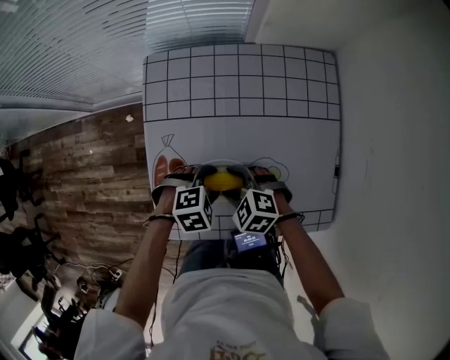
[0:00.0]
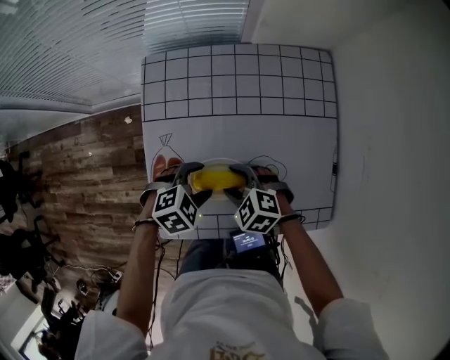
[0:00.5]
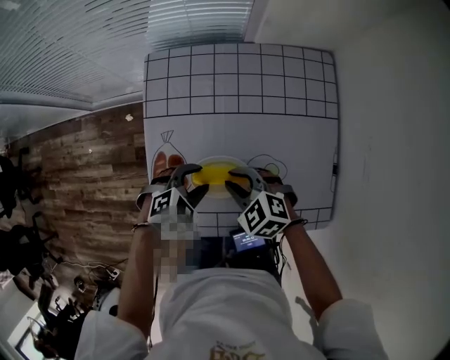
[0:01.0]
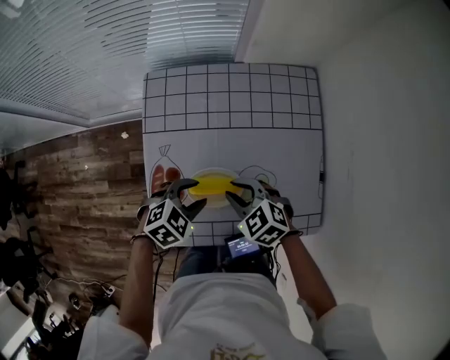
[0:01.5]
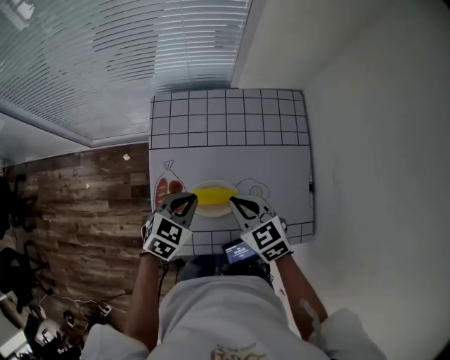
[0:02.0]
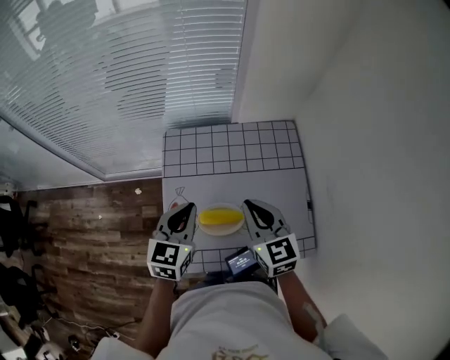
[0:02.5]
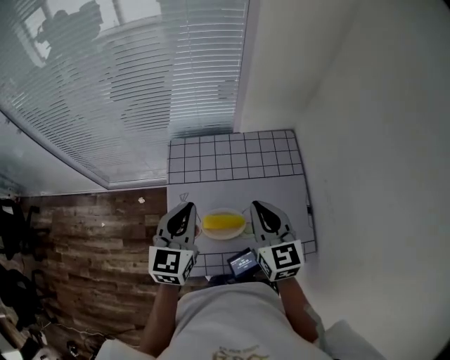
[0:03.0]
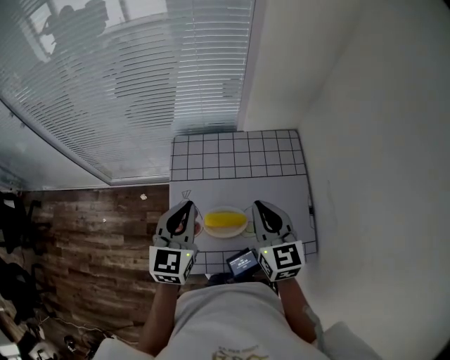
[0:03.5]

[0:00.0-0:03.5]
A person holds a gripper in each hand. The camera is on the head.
0:00.0 to 0:02.0: Both grippers move upward, approximately 15 cm. The right gripper changes its angle by approximately 40 degrees, and closes its fingers, while the left gripper turns by some 40 degrees, and closes up.
0:02.0 to 0:03.5: Both grippers move upward, approximately 15 cm. The left gripper tips its fingers upward by approximately 30 degrees; the right gripper rotates approximately 30 degrees.

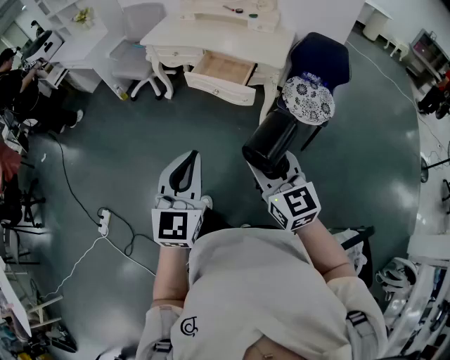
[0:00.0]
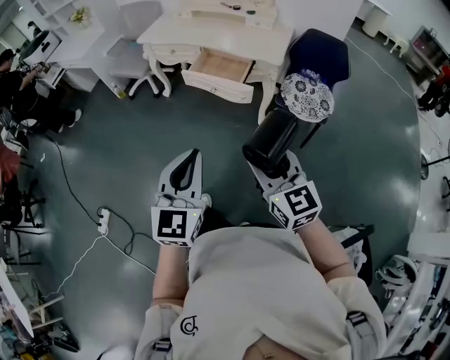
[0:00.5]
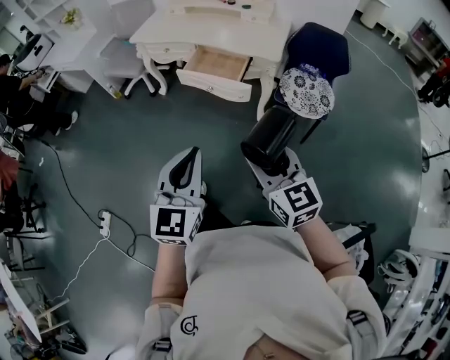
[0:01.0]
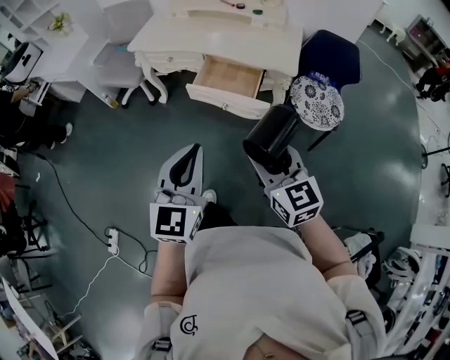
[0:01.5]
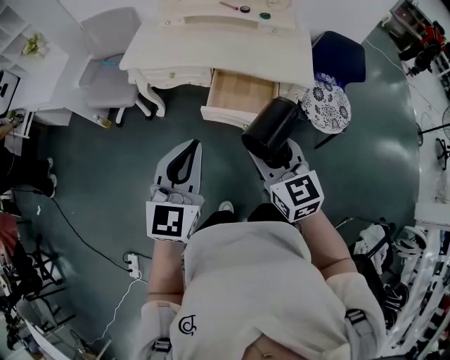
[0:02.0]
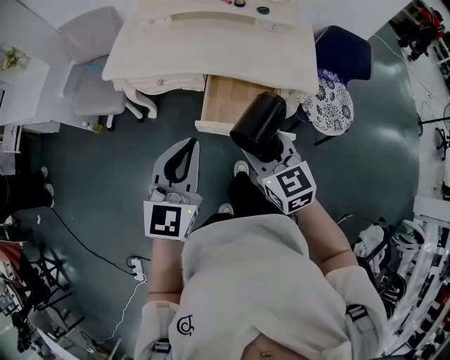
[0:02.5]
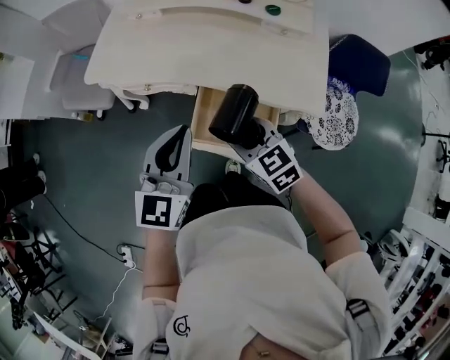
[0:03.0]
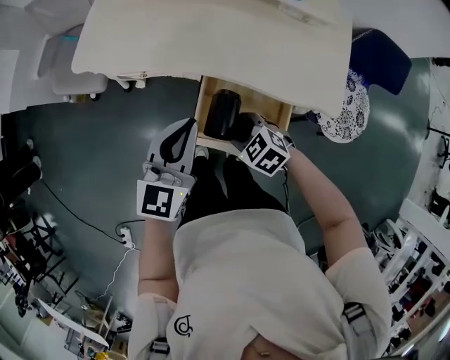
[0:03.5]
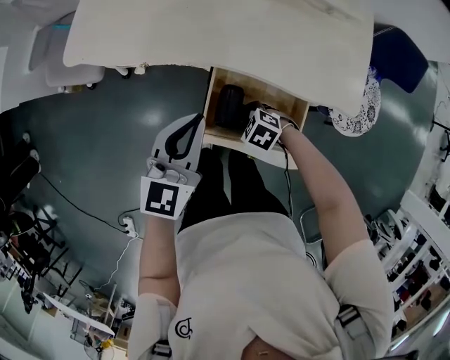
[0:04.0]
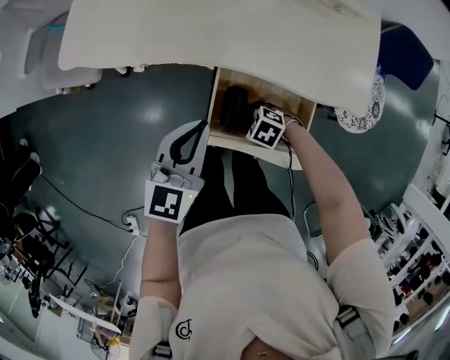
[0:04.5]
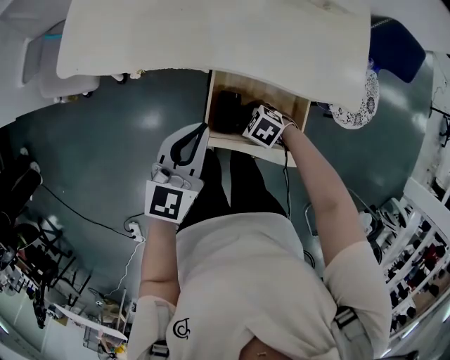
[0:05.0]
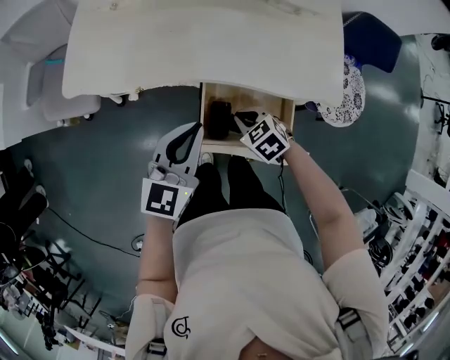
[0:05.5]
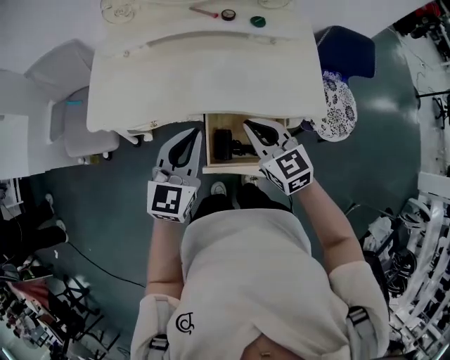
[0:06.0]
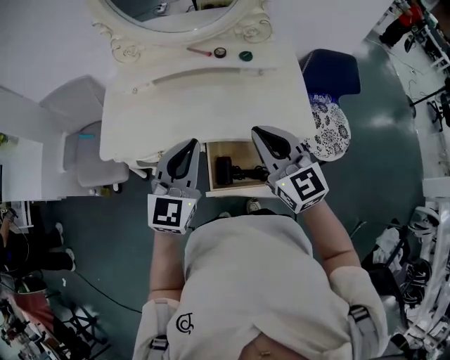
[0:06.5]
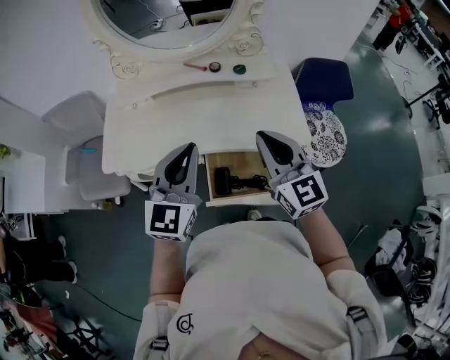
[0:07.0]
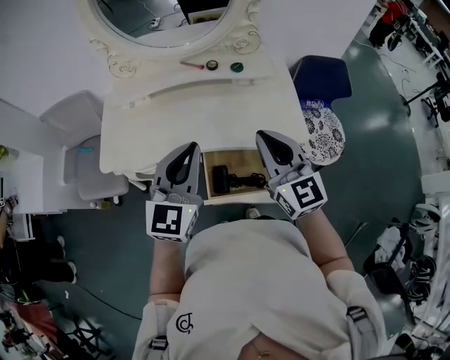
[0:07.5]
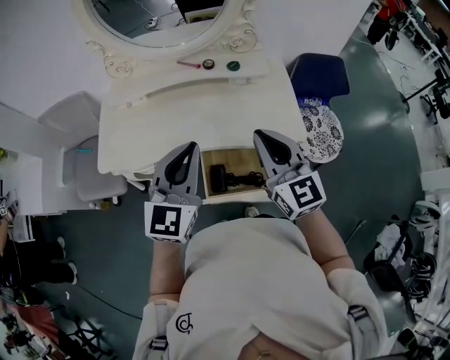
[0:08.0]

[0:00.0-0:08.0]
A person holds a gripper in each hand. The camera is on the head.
0:00.0 to 0:02.0: The two grippers go some 40 cm forward and to the left.
0:02.0 to 0:04.0: The right gripper moves downward, roughly 40 cm, and tips its fingers downward by approximately 50 degrees, while the left gripper changes place by roughly 35 cm.
0:04.0 to 0:06.0: The left gripper is displaced upward by some 5 cm, while the right gripper is displaced upward by some 30 cm, tilts its fingers approximately 50 degrees upward, and closes.
0:06.0 to 0:08.0: Both grippers travel together upward, approximately 15 cm. The right gripper rotates some 30 degrees.

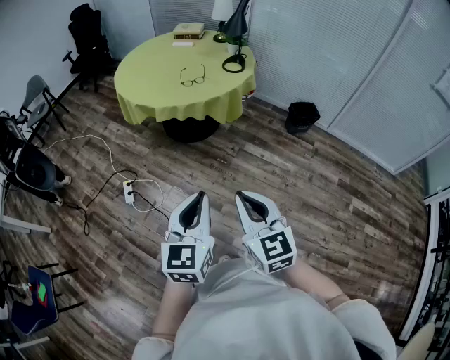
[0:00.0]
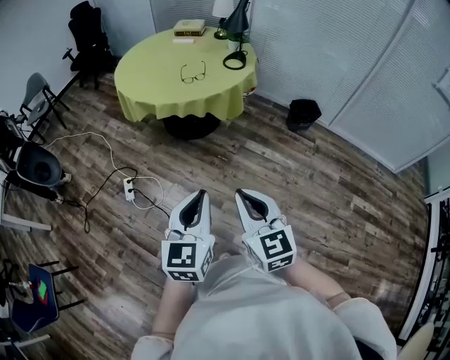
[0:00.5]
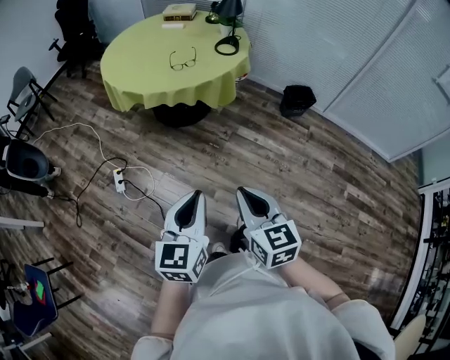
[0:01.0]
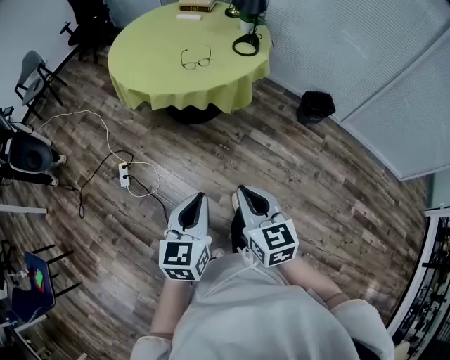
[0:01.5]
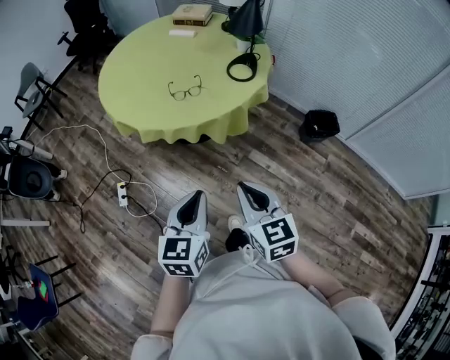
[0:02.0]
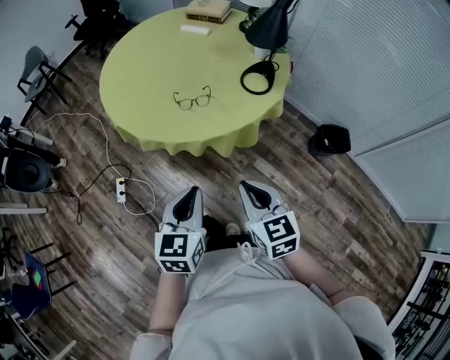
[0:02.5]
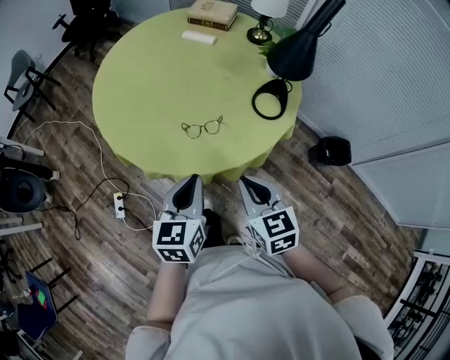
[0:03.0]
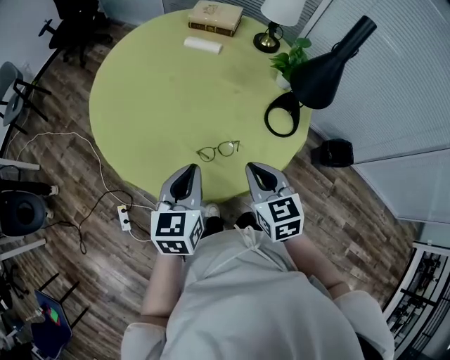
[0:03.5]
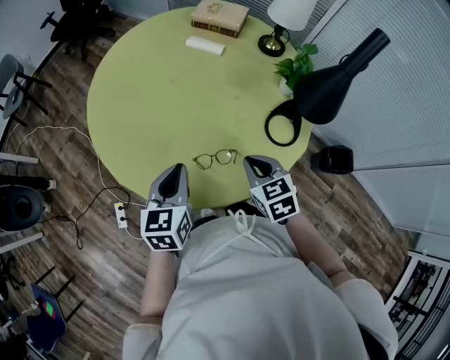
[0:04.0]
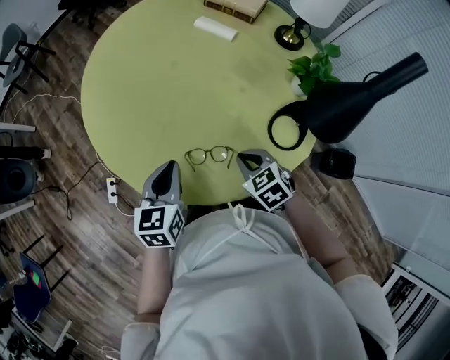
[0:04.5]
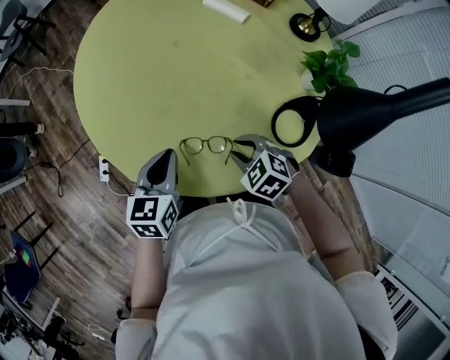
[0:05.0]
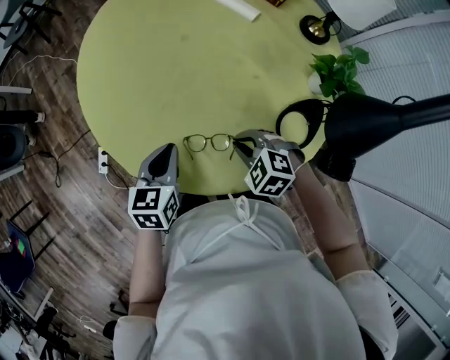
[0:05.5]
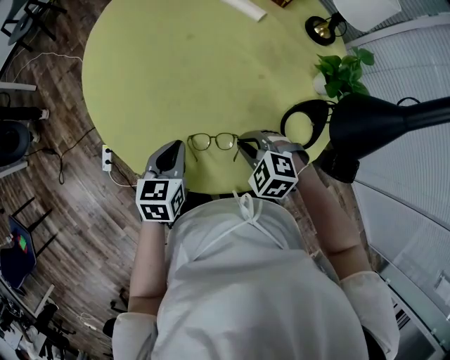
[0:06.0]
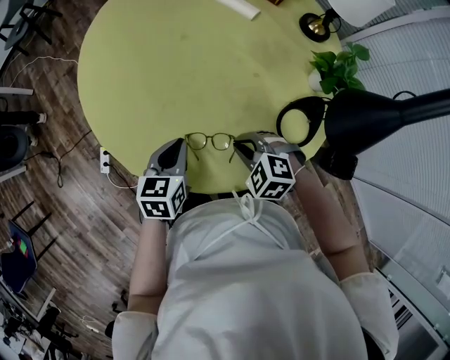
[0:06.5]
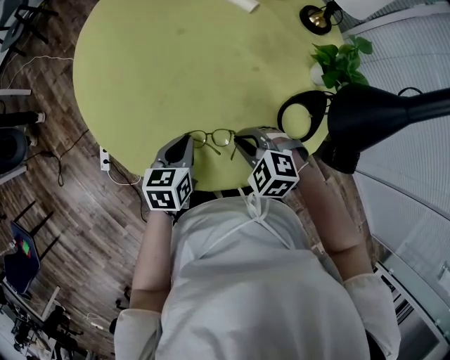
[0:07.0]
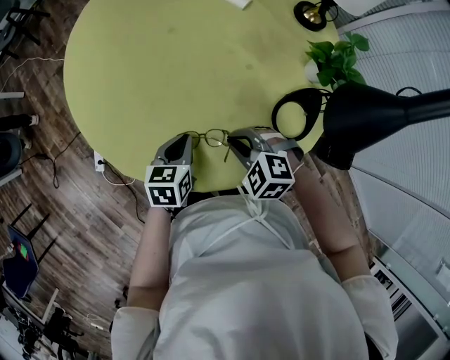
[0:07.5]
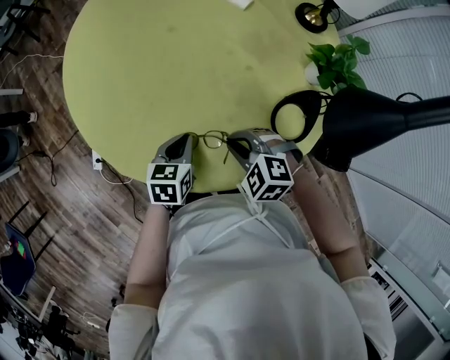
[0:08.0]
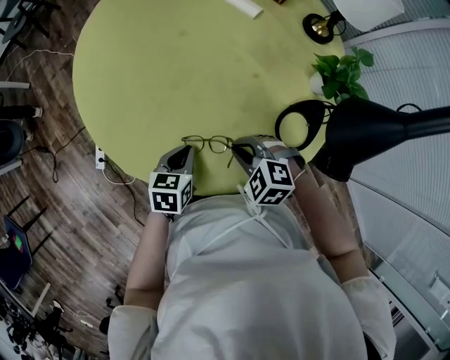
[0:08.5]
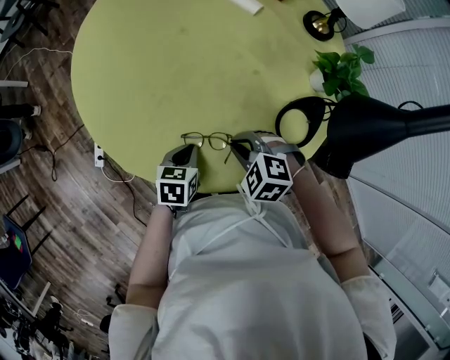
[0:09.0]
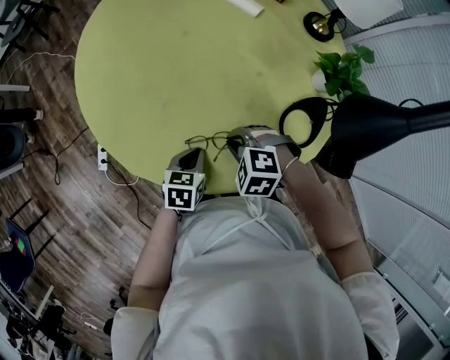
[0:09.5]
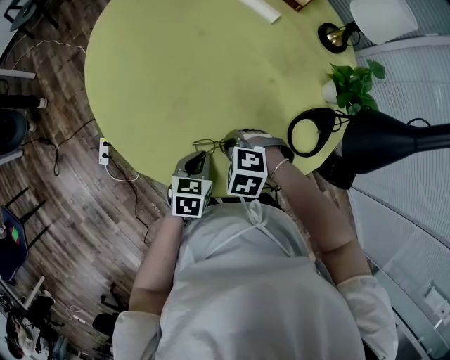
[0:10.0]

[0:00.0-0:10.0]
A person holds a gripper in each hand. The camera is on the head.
0:00.0 to 0:02.0: Both grippers travel together forward, about 35 cm.
0:02.0 to 0:04.0: The two grippers travel together, forward, some 50 cm. The right gripper rotates about 20 degrees.
0:04.0 to 0:06.0: Both grippers move downward, roughly 10 cm. The right gripper rotates around the line of its fingers by about 50 degrees, counterclockwise from behind, and opens, then closes again.
0:06.0 to 0:08.0: The left gripper travels downward and to the right by roughly 10 cm.
0:08.0 to 0:10.0: The right gripper shifts by approximately 5 cm.

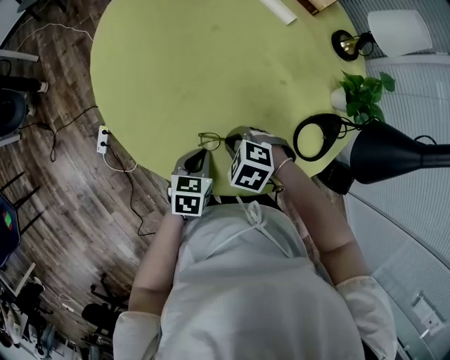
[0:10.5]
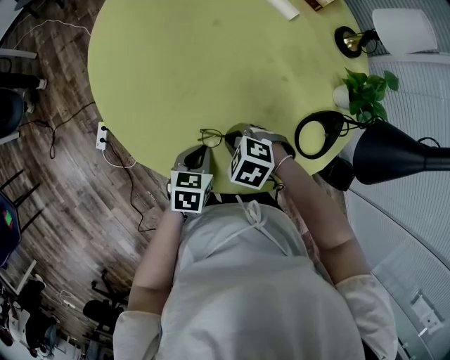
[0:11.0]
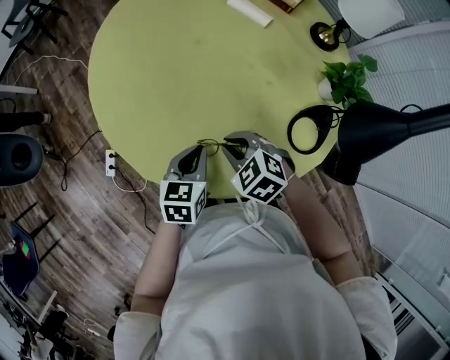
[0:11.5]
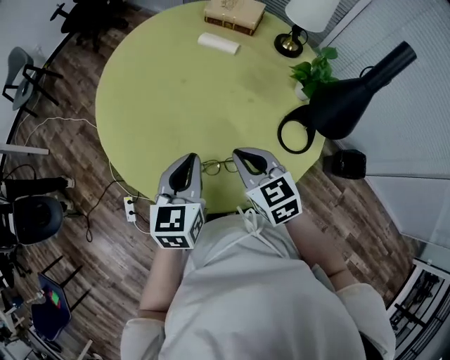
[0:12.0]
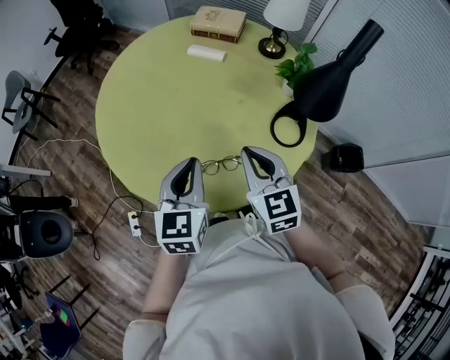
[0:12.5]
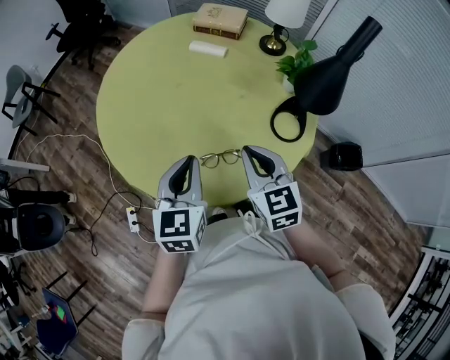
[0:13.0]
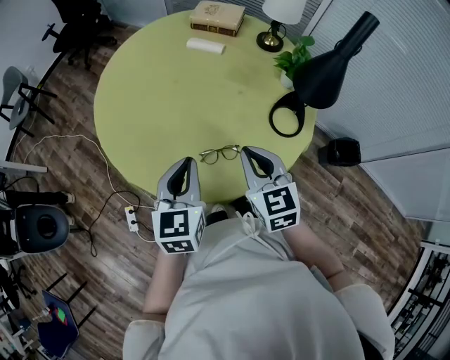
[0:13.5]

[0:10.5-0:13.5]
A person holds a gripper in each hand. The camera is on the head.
0:10.5 to 0:12.0: Both grippers travel together upward, roughly 20 cm. The right gripper tips its fingers upward by approximately 40 degrees. The left gripper turns by some 30 degrees.
0:12.0 to 0:13.5: Both grippers move backward, roughly 5 cm.

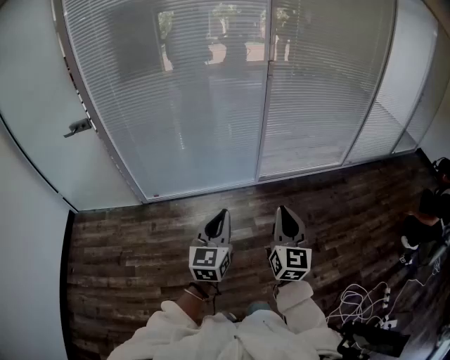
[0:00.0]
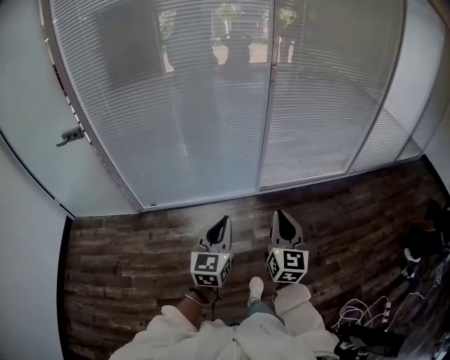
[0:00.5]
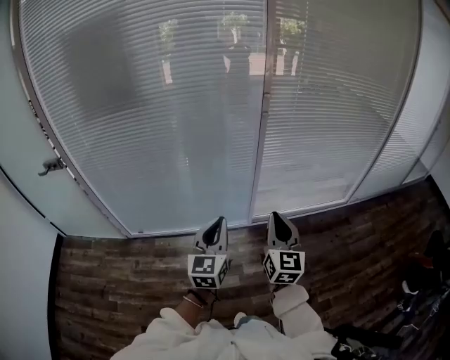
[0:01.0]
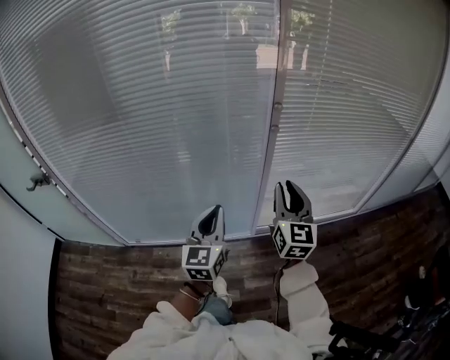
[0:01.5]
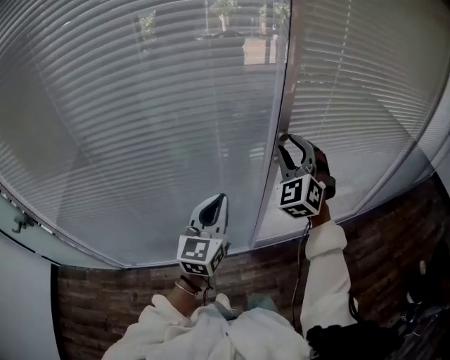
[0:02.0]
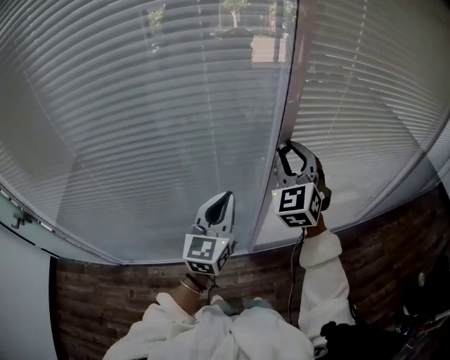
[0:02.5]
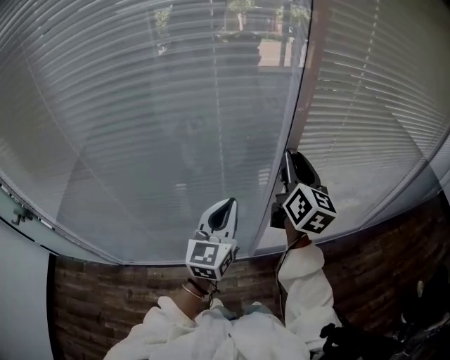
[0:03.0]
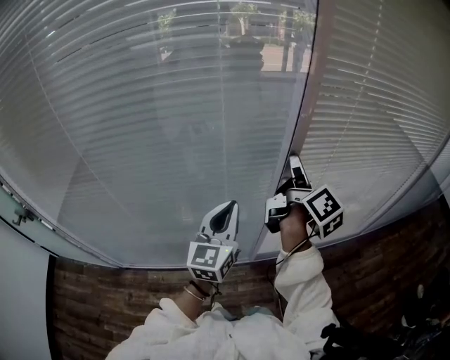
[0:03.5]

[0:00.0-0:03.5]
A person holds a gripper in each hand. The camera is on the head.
0:00.0 to 0:02.0: The two grippers travel together, forward, about 80 cm. The right gripper rotates around the line of its fingers by approximately 60 degrees, counterclockwise from behind, and opens its fingers.
0:02.0 to 0:03.5: The right gripper rotates around the line of its fingers by some 120 degrees, clockwise from behind; the left gripper is displaced forward by some 5 cm.
